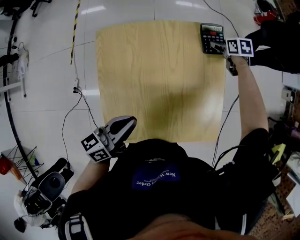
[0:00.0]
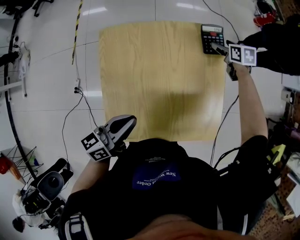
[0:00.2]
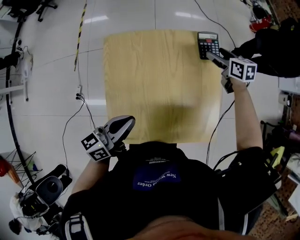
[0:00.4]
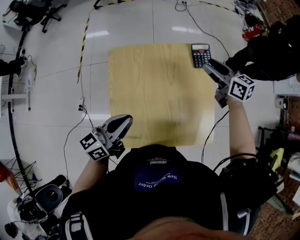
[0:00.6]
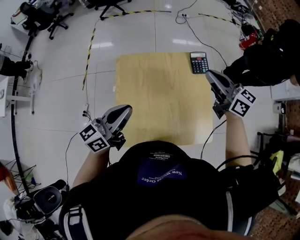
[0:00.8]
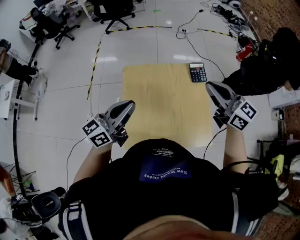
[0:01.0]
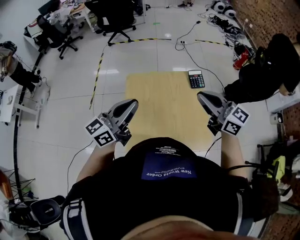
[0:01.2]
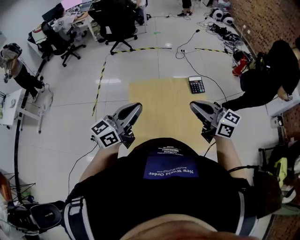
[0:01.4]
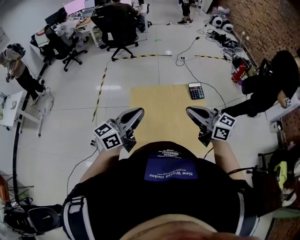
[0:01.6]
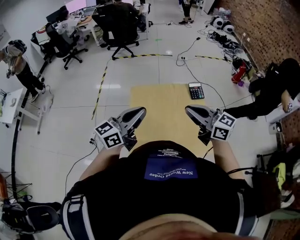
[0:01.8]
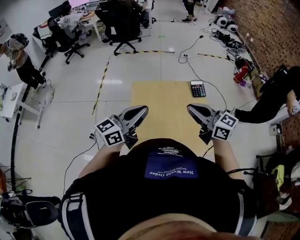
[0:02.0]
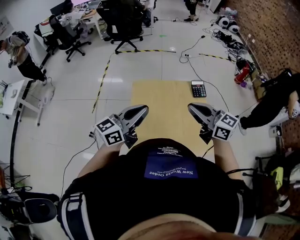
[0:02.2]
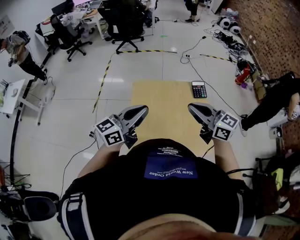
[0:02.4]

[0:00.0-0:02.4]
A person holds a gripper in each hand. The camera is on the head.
0:00.0 to 0:01.2: The right gripper travels upward and backward by about 50 cm, points its fingers about 60 degrees further upward, and closes. The left gripper is displaced upward by roughly 25 cm, and changes its angle by some 30 degrees.
0:01.2 to 0:02.4: The right gripper moves approximately 5 cm.

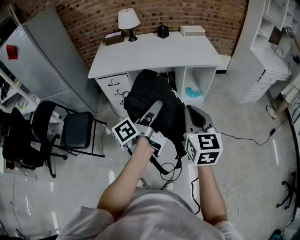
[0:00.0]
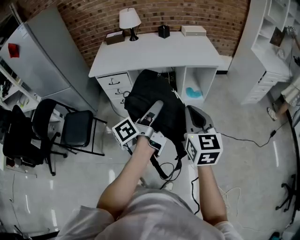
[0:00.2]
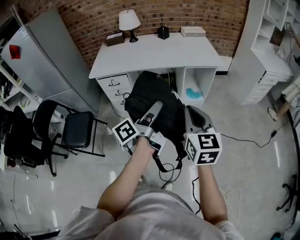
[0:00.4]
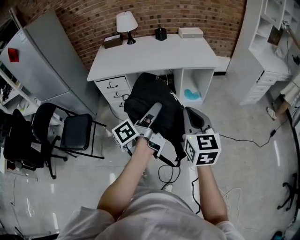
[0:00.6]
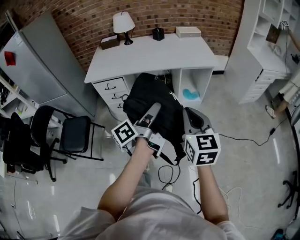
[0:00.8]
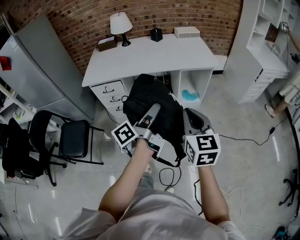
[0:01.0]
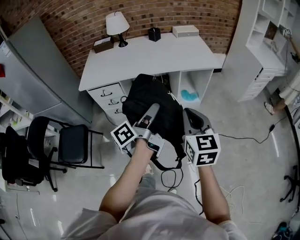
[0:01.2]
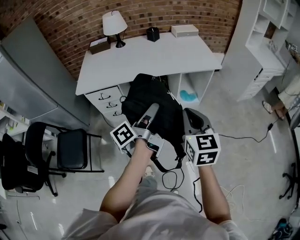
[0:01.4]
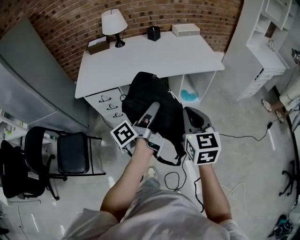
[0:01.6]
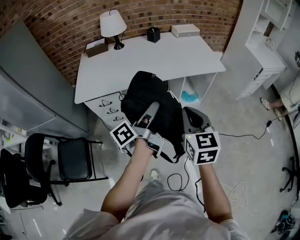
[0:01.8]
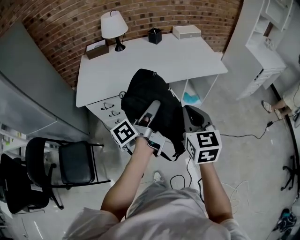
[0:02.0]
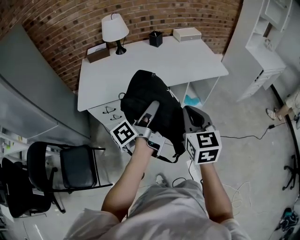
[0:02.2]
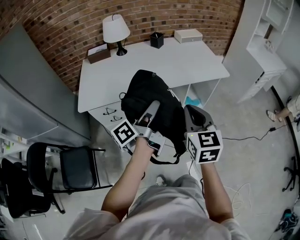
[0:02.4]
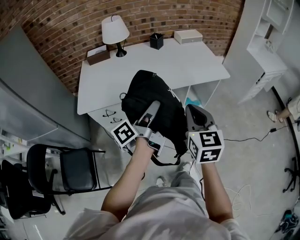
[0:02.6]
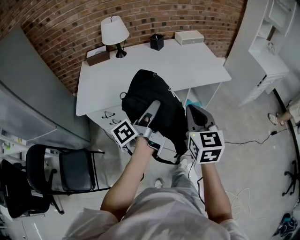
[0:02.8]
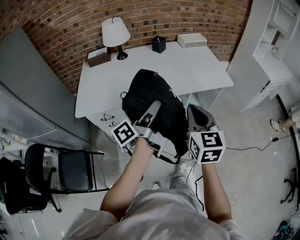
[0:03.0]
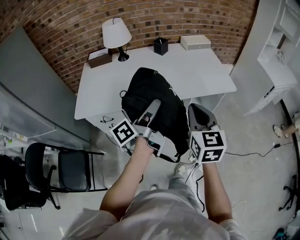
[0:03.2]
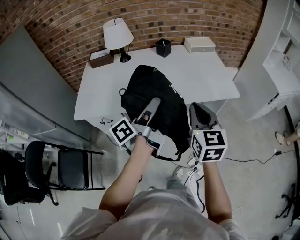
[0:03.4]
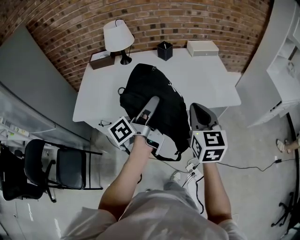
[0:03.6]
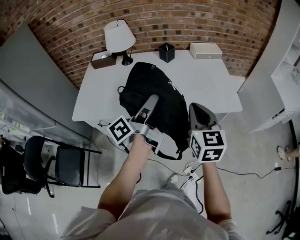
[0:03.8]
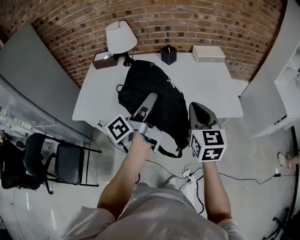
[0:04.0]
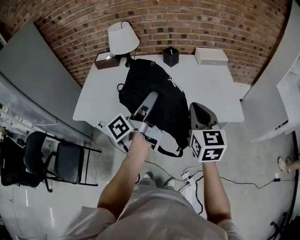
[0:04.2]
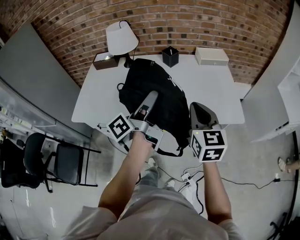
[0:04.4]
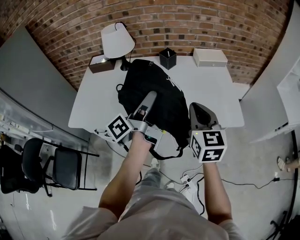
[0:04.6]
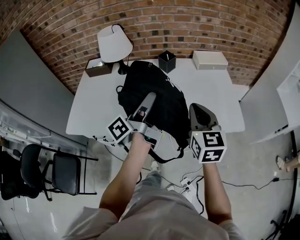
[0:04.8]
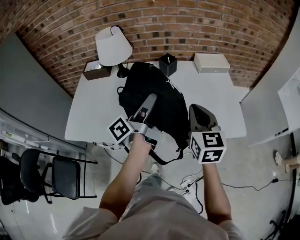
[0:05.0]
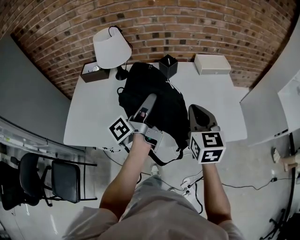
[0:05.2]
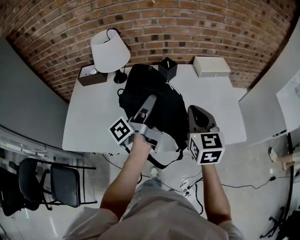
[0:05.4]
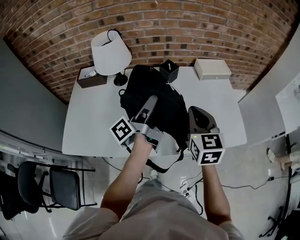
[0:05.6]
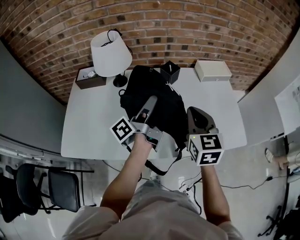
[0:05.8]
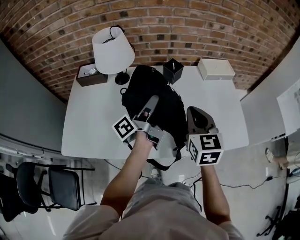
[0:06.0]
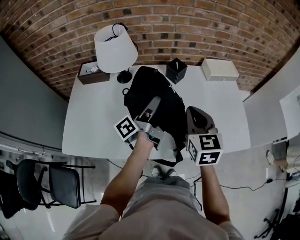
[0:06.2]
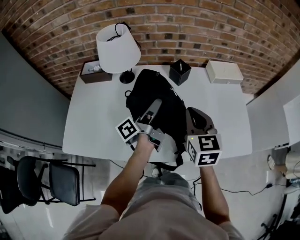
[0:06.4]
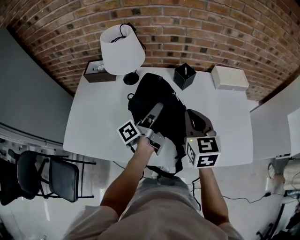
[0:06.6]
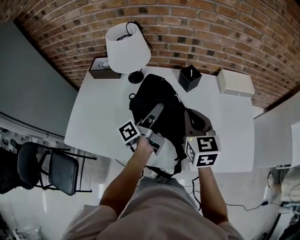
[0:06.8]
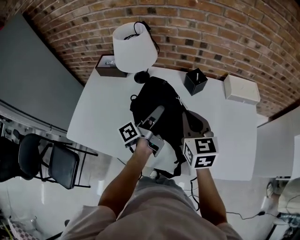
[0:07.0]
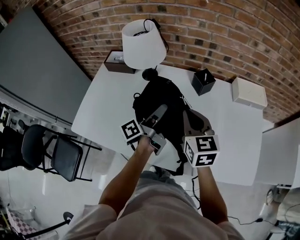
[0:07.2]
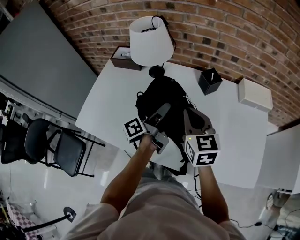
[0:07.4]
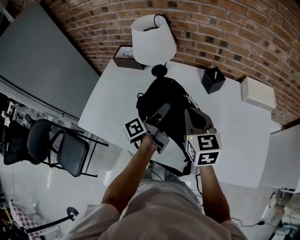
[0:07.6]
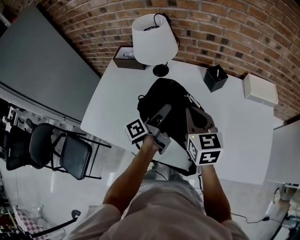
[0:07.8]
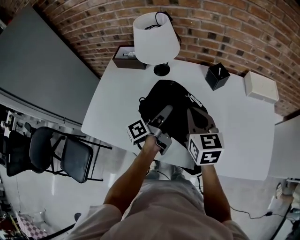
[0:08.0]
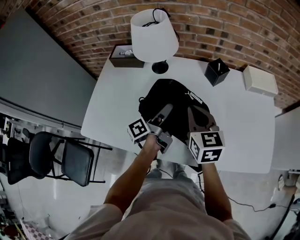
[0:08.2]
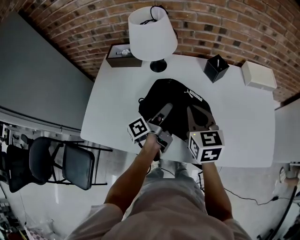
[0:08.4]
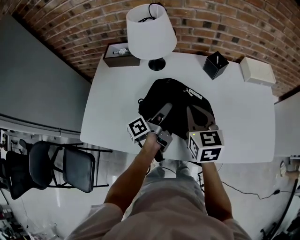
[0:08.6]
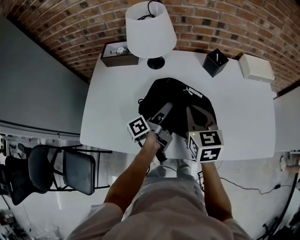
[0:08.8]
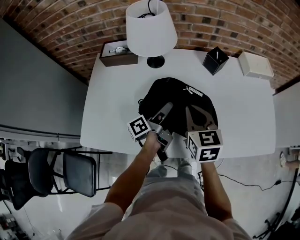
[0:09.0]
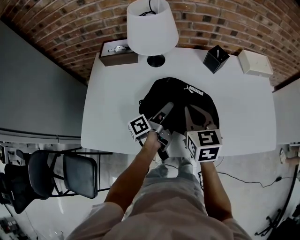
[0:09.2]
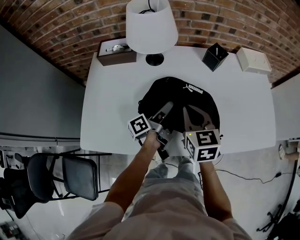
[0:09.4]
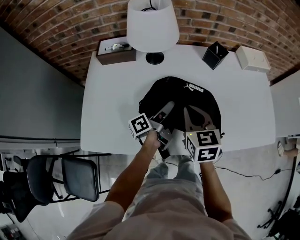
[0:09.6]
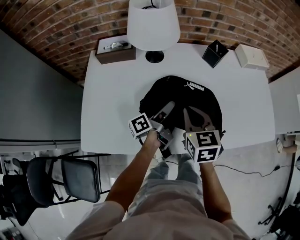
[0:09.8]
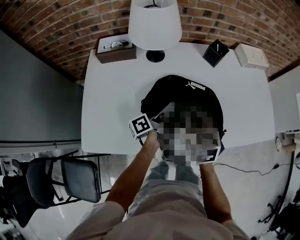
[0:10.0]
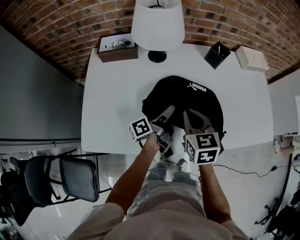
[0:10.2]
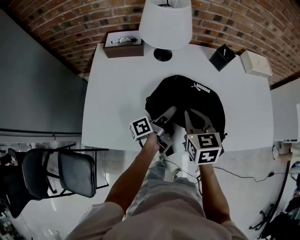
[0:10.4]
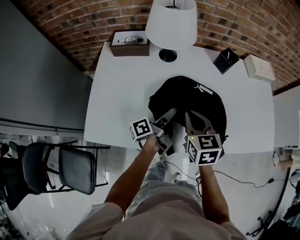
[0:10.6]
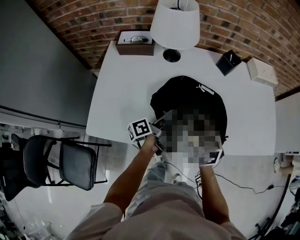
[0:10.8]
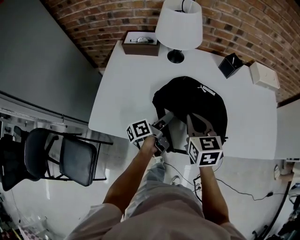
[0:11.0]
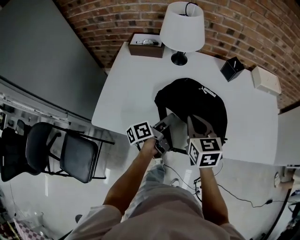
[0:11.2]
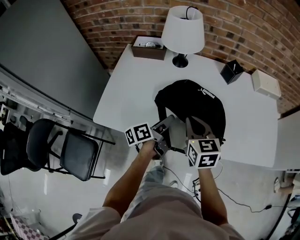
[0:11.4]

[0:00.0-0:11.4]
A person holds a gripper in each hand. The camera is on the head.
0:00.0 to 0:01.4: The right gripper shifts by some 15 cm.
0:01.4 to 0:02.8: The right gripper shifts by approximately 15 cm.
0:02.8 to 0:04.2: The right gripper changes place by approximately 25 cm.
0:04.2 to 0:05.6: The right gripper ends up roughly 20 cm from where it was.
0:05.6 to 0:07.2: The right gripper moves roughly 15 cm, and changes its angle by about 20 degrees.
0:07.2 to 0:08.6: The right gripper shifts by approximately 10 cm.
0:08.6 to 0:10.0: The right gripper ends up approximately 10 cm from where it was.
0:10.0 to 0:11.4: The right gripper ends up approximately 5 cm from where it was.

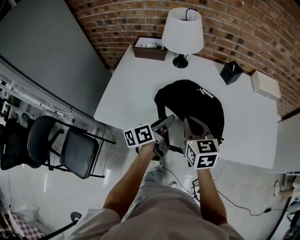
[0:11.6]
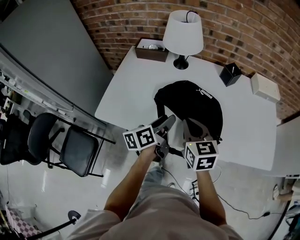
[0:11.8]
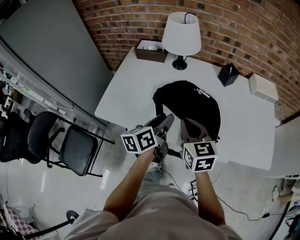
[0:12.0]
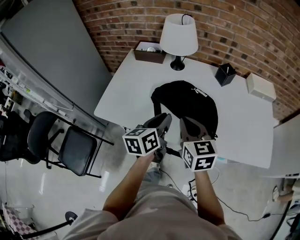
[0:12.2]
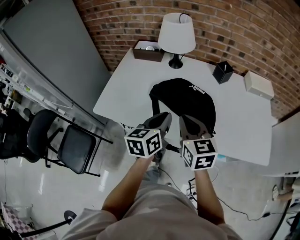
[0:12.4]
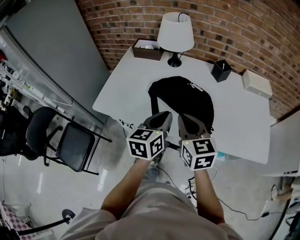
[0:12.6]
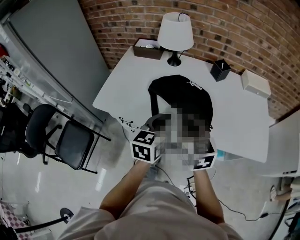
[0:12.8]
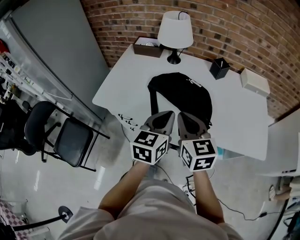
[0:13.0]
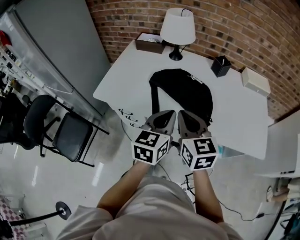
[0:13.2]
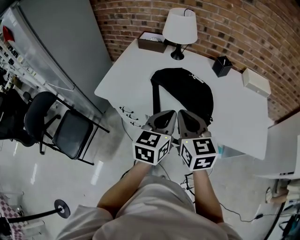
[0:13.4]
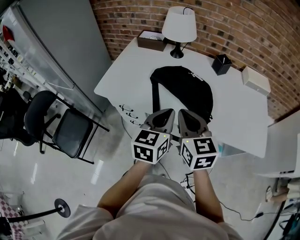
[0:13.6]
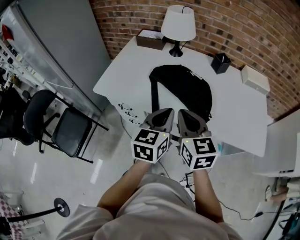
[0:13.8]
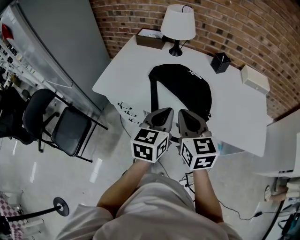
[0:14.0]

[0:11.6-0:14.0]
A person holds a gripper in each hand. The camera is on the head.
0:11.6 to 0:12.8: The right gripper shifts by roughly 10 cm.
0:12.8 to 0:14.0: The right gripper shifts by approximately 5 cm.

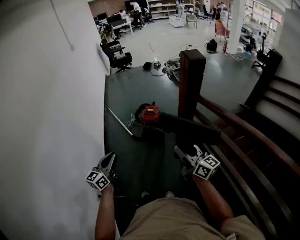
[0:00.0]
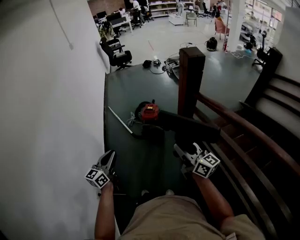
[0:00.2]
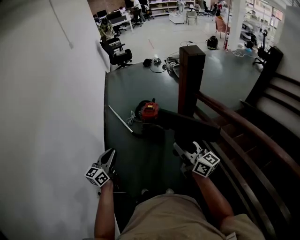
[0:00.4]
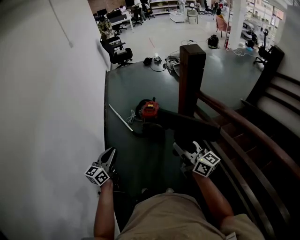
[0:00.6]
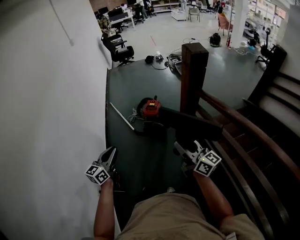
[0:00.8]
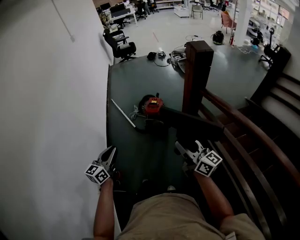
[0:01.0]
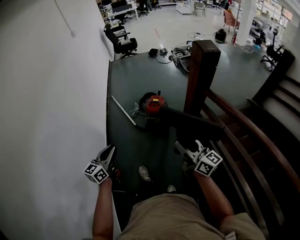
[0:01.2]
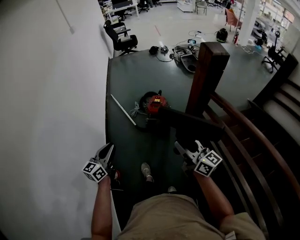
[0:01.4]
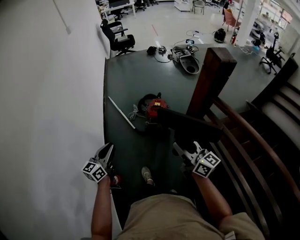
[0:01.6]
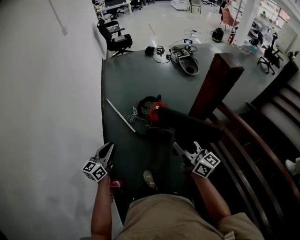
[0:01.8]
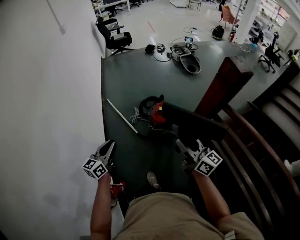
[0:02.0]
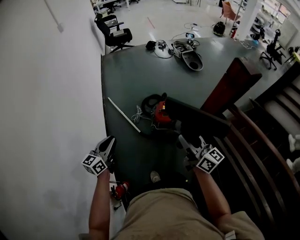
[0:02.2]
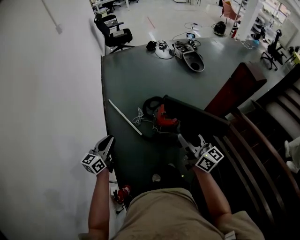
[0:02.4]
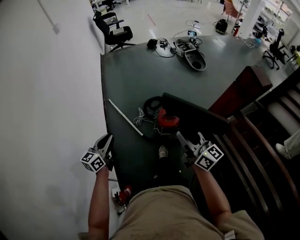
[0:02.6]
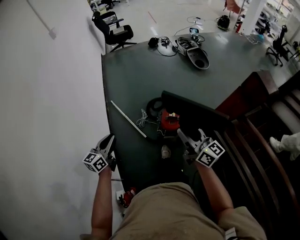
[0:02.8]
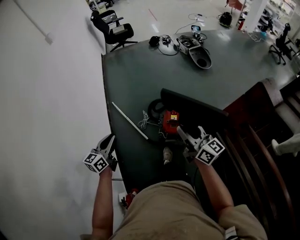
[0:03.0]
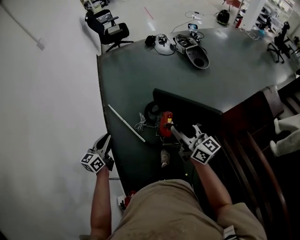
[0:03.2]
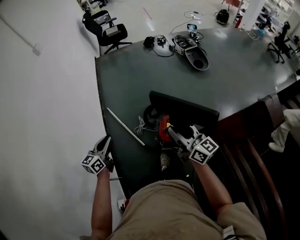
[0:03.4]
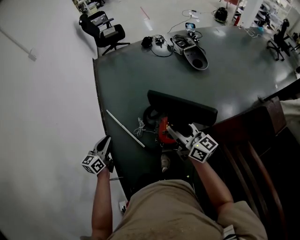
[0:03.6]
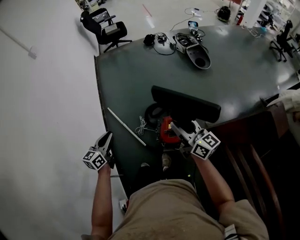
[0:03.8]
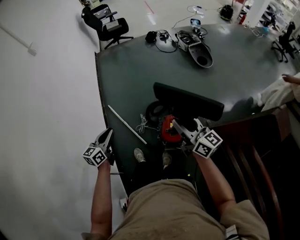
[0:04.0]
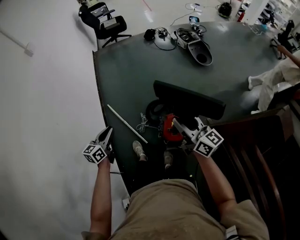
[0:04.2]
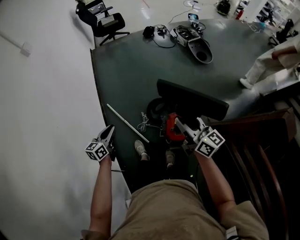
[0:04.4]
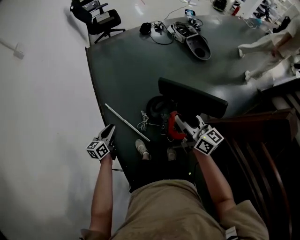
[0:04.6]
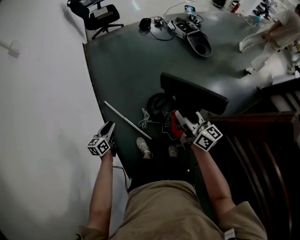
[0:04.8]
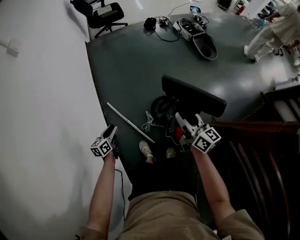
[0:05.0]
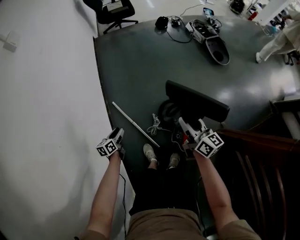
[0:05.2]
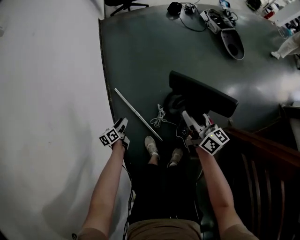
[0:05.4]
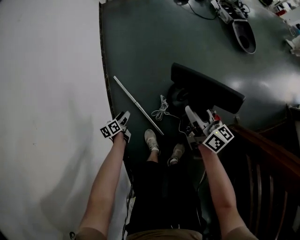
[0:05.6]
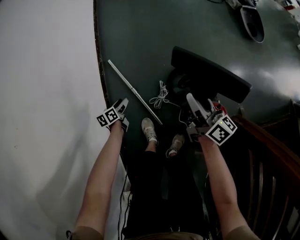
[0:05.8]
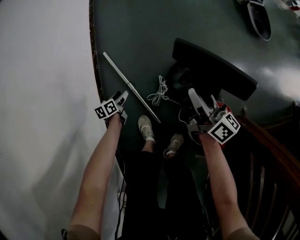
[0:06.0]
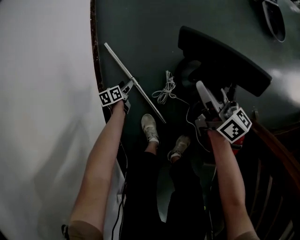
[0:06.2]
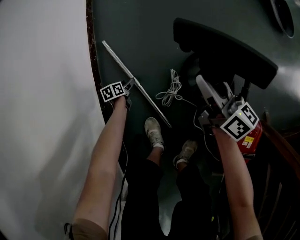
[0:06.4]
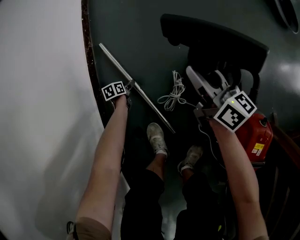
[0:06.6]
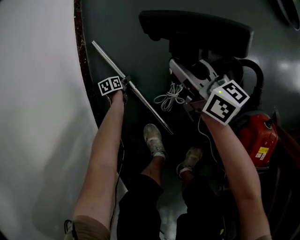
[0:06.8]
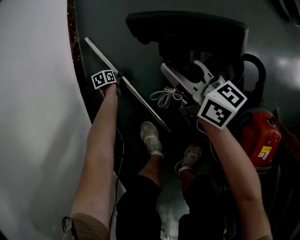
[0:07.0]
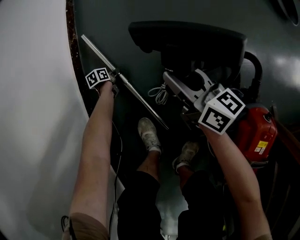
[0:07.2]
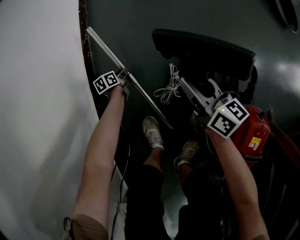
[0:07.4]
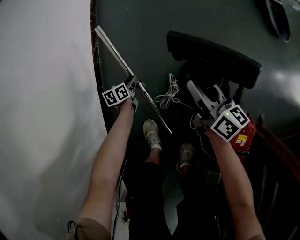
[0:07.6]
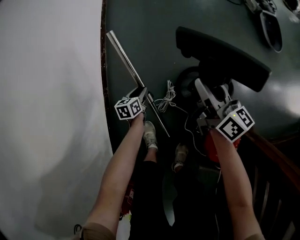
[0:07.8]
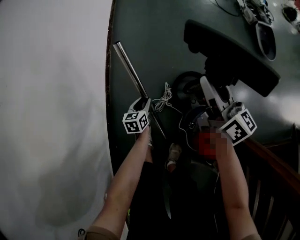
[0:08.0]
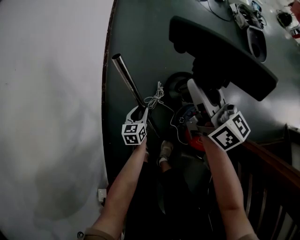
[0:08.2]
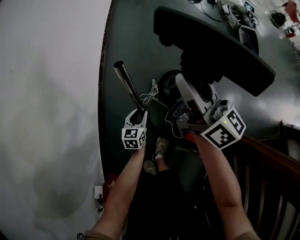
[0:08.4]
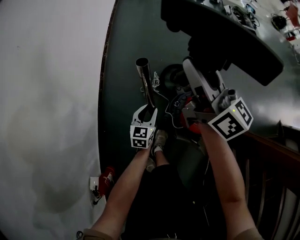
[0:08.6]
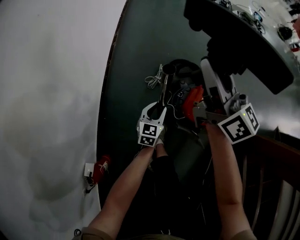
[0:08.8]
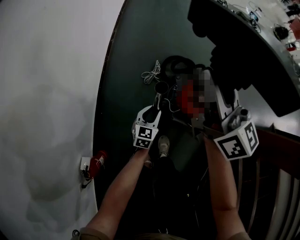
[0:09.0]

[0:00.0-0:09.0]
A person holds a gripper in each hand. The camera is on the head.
0:00.0 to 0:01.6: Both grippers travel together forward and to the left, about 20 cm.
0:01.6 to 0:03.0: The two grippers travel together, forward, some 40 cm.
0:03.0 to 0:04.4: The right gripper goes about 25 cm forward. Meanwhile the left gripper shifts approximately 25 cm forward and downward.
0:04.4 to 0:06.0: The right gripper goes approximately 60 cm downward and forward, and rotates approximately 20 degrees, while the left gripper moves downward, about 70 cm, turns by approximately 40 degrees, and opens its fingers.
0:06.0 to 0:07.6: The right gripper is displaced downward by some 15 cm. Meanwhile the left gripper travels forward by approximately 5 cm, moves roughly 40 cm downward and comes back, and closes up.
0:07.6 to 0:09.0: The left gripper heads backward and upward, covering roughly 60 cm, and turns by about 40 degrees; the right gripper travels upward and backward by approximately 60 cm, and swivels roughly 30 degrees.
